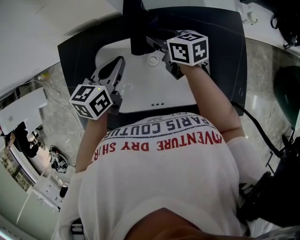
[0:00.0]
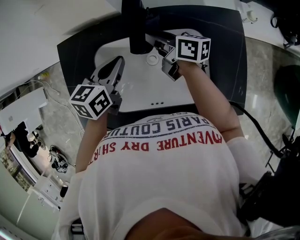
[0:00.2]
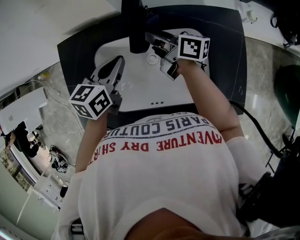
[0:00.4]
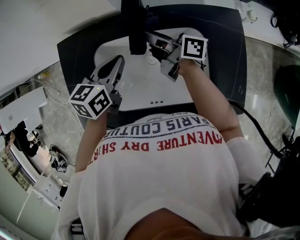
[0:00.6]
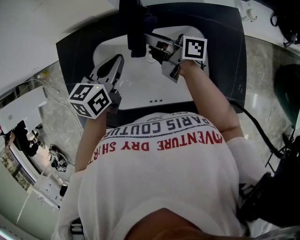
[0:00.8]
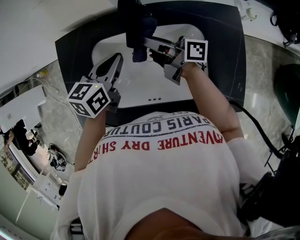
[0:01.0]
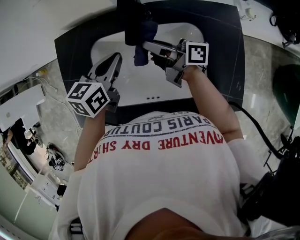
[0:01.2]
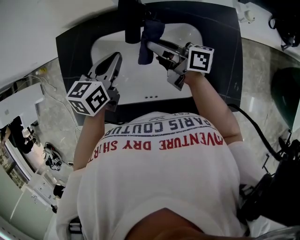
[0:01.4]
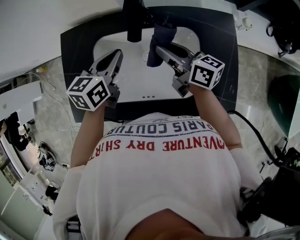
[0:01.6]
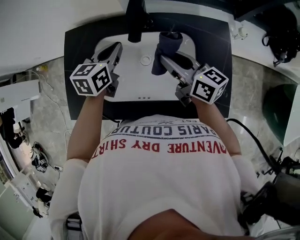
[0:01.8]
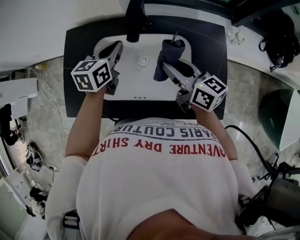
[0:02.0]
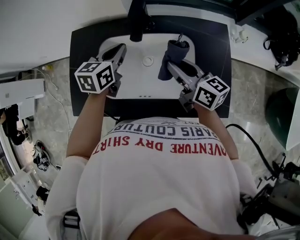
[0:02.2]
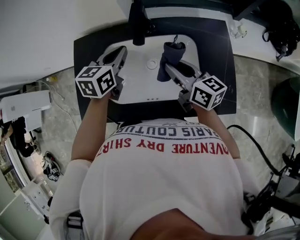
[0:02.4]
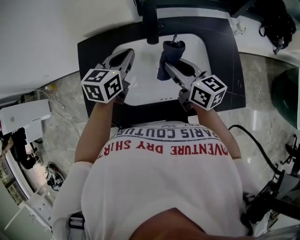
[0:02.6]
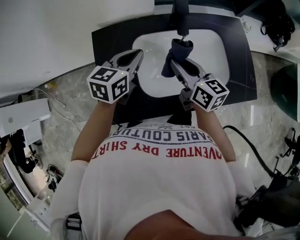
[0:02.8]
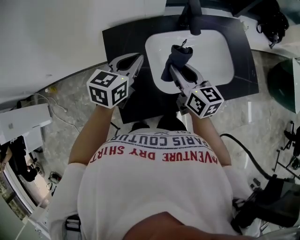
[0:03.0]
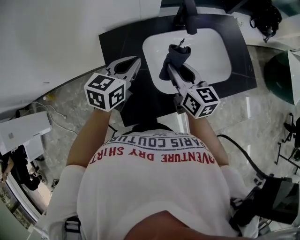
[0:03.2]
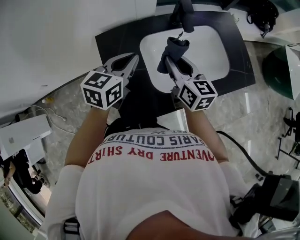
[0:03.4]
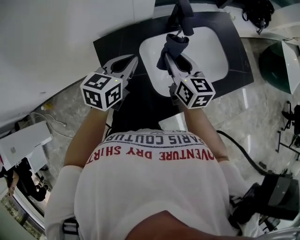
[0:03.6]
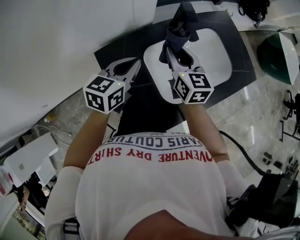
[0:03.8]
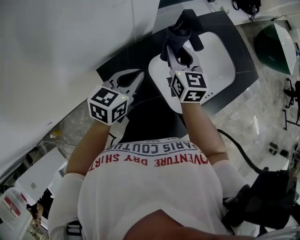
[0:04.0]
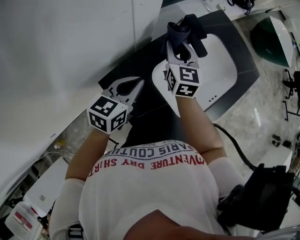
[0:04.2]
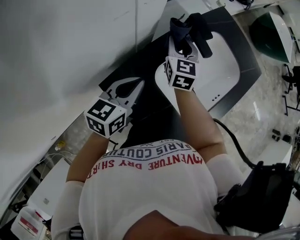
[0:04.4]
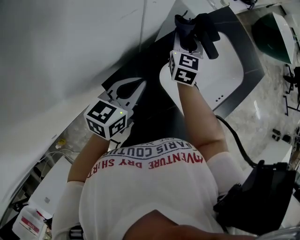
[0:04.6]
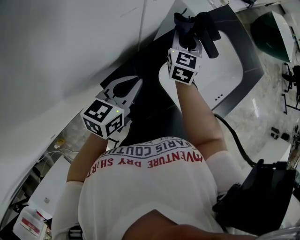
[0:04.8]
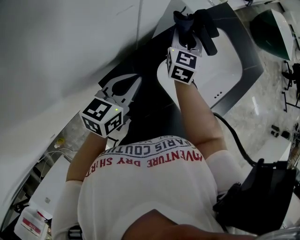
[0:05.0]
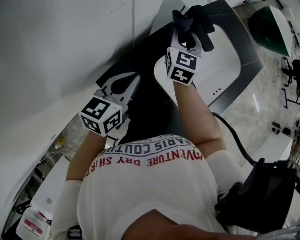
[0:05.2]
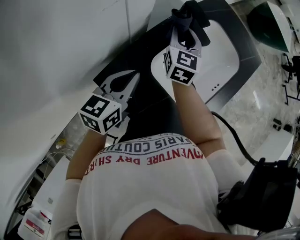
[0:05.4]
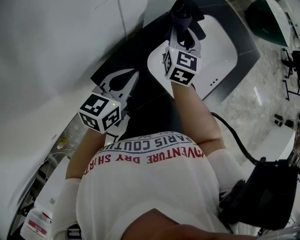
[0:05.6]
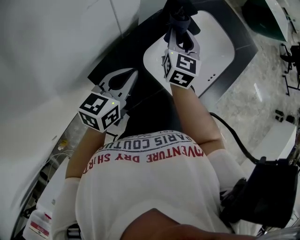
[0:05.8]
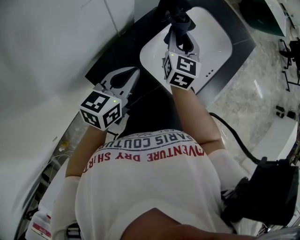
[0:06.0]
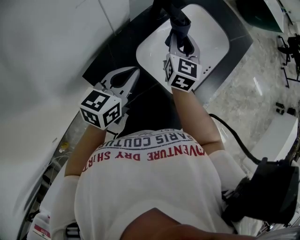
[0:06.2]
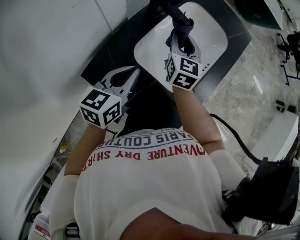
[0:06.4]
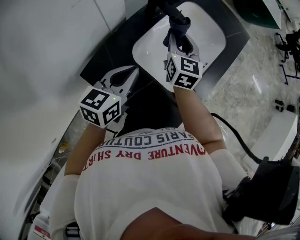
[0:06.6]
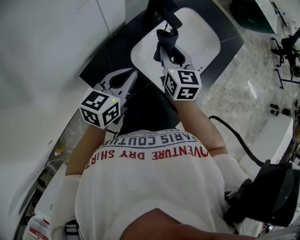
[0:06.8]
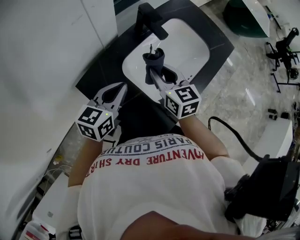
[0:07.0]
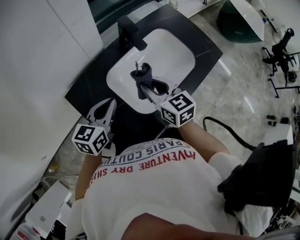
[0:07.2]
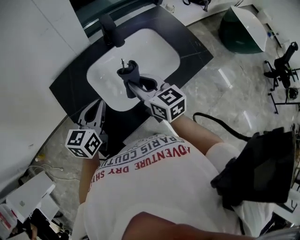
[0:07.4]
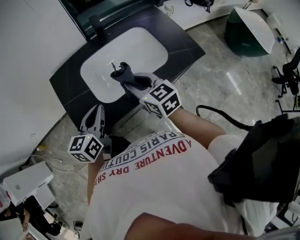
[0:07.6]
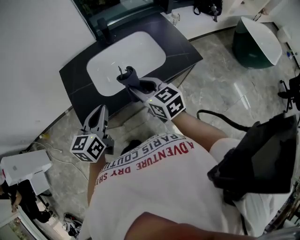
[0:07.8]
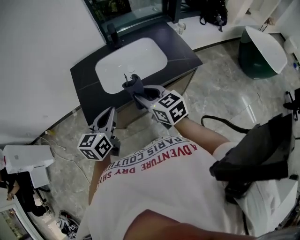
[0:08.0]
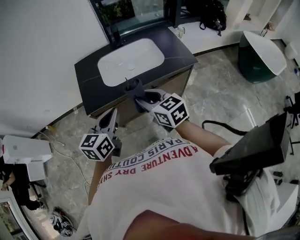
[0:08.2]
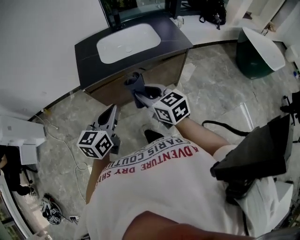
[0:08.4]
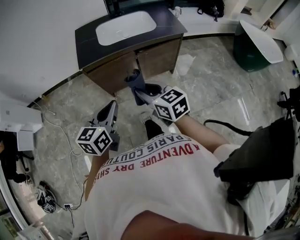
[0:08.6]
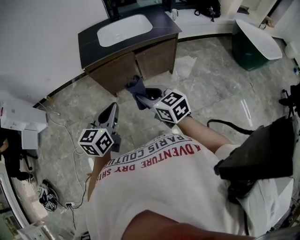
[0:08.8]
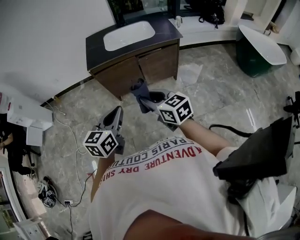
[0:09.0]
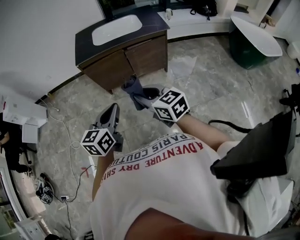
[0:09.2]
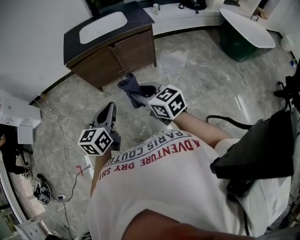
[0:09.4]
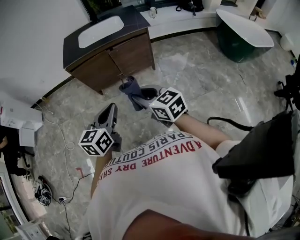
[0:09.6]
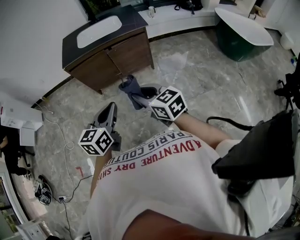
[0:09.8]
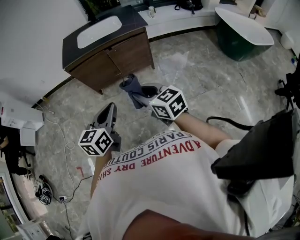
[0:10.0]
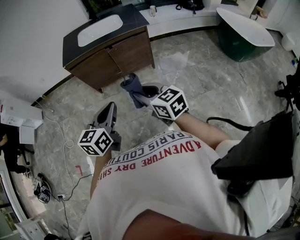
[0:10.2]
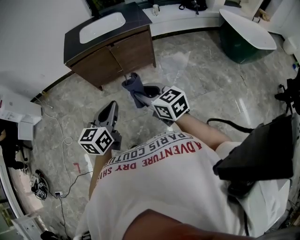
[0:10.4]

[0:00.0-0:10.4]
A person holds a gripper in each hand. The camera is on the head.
0:00.0 to 0:01.4: The right gripper heads backward, covering about 5 cm, and rotates some 30 degrees.
0:01.4 to 0:03.0: The left gripper moves some 20 cm, and swivels roughly 20 degrees; the right gripper shifts by some 25 cm, and swivels roughly 50 degrees.
0:03.0 to 0:04.4: The right gripper shifts by about 30 cm, and swivels roughly 50 degrees; the left gripper moves some 15 cm, and changes its angle by some 30 degrees.
0:04.4 to 0:06.0: The left gripper is displaced to the right by some 5 cm. The right gripper travels to the right by roughly 10 cm.
0:06.0 to 0:07.4: The left gripper moves about 20 cm, and rotates roughly 30 degrees, while the right gripper moves about 20 cm, and rotates approximately 50 degrees.
0:07.4 to 0:09.0: The pair of grippers is taken approximately 70 cm. The right gripper rotates approximately 30 degrees. Meanwhile the left gripper swivels roughly 20 degrees.
0:09.0 to 0:10.4: Both grippers move to the right and backward, roughly 20 cm.

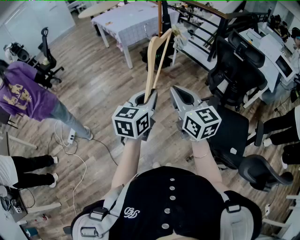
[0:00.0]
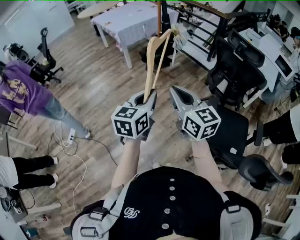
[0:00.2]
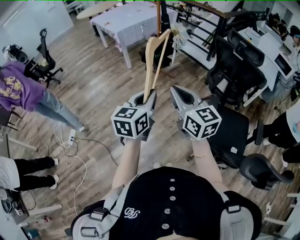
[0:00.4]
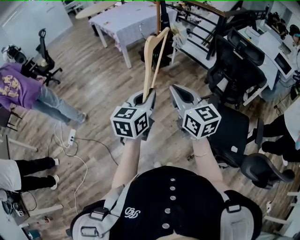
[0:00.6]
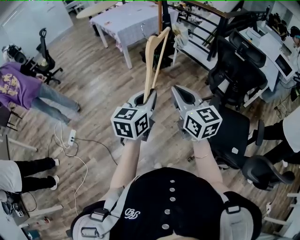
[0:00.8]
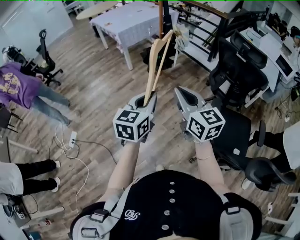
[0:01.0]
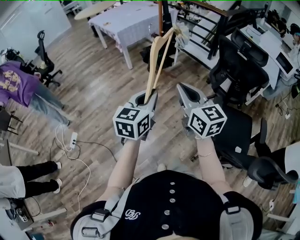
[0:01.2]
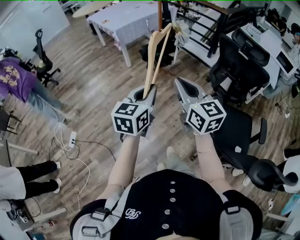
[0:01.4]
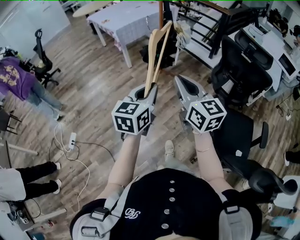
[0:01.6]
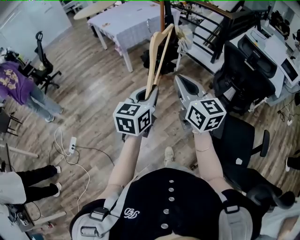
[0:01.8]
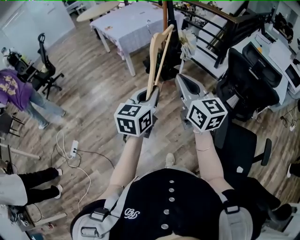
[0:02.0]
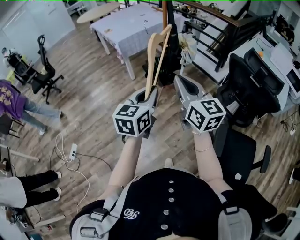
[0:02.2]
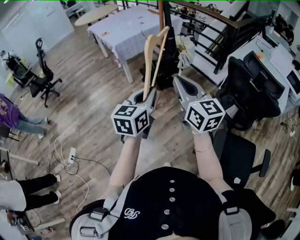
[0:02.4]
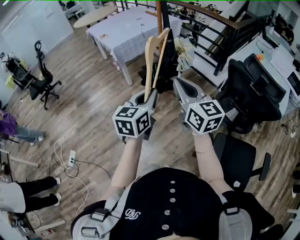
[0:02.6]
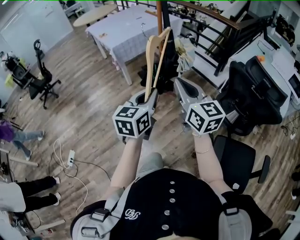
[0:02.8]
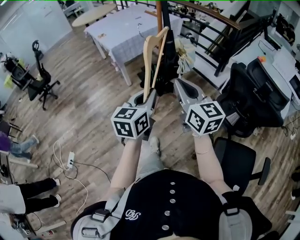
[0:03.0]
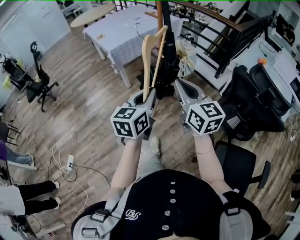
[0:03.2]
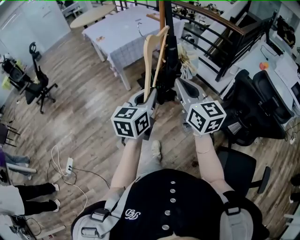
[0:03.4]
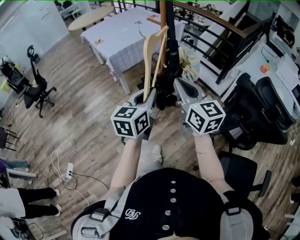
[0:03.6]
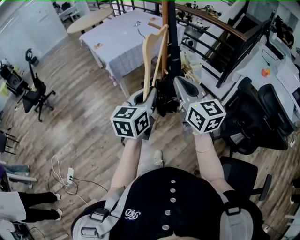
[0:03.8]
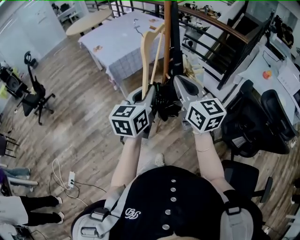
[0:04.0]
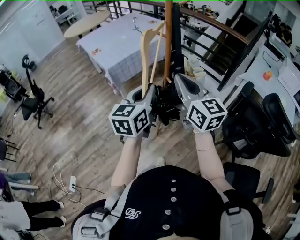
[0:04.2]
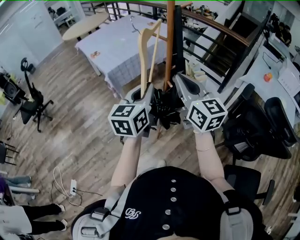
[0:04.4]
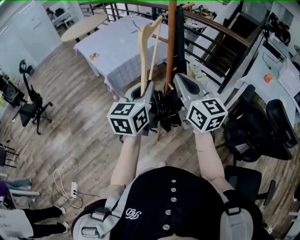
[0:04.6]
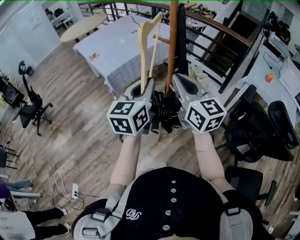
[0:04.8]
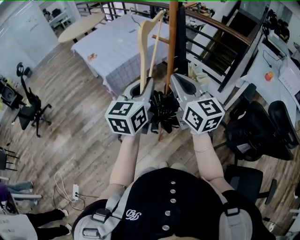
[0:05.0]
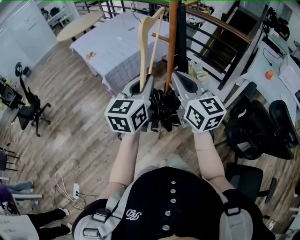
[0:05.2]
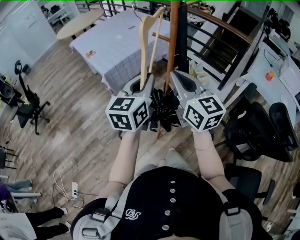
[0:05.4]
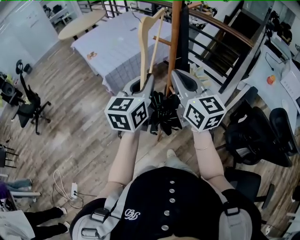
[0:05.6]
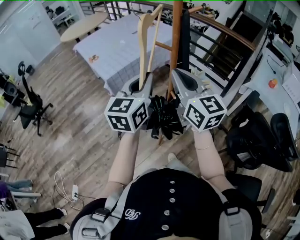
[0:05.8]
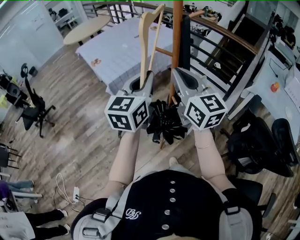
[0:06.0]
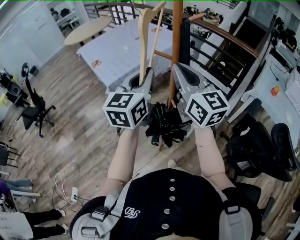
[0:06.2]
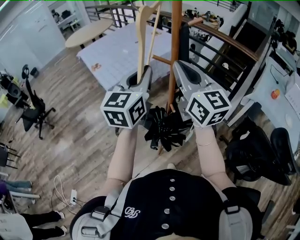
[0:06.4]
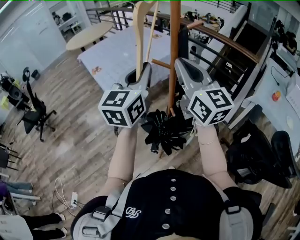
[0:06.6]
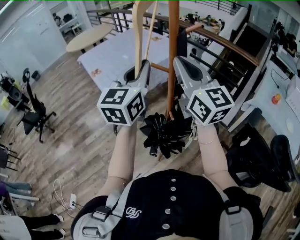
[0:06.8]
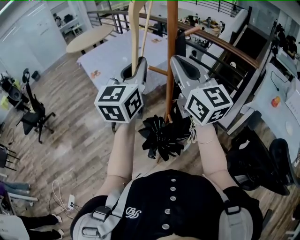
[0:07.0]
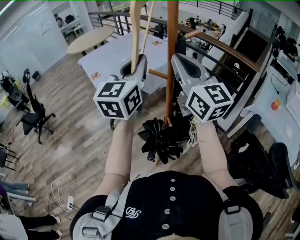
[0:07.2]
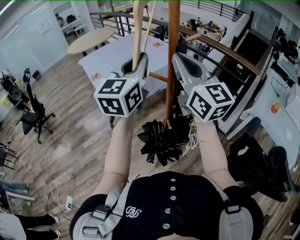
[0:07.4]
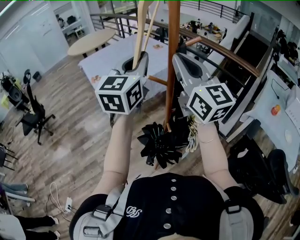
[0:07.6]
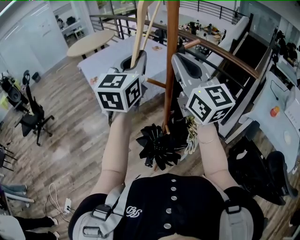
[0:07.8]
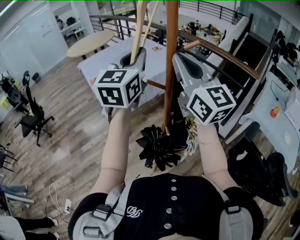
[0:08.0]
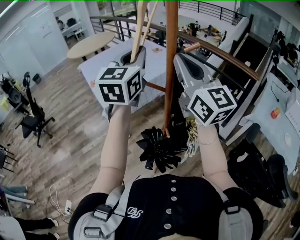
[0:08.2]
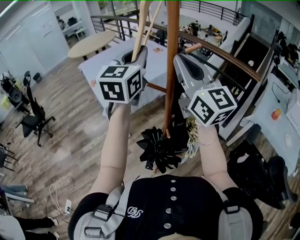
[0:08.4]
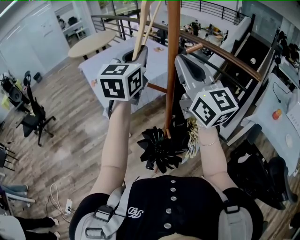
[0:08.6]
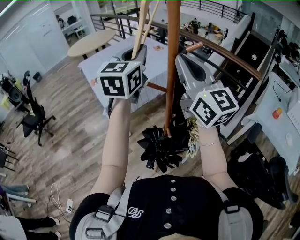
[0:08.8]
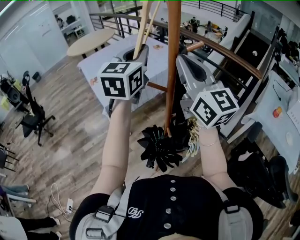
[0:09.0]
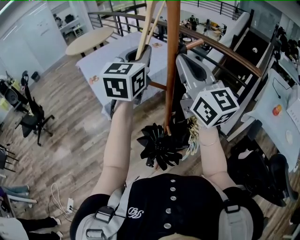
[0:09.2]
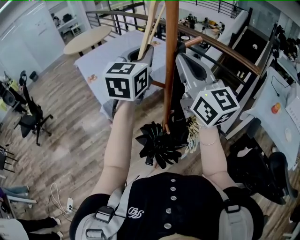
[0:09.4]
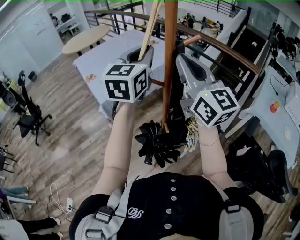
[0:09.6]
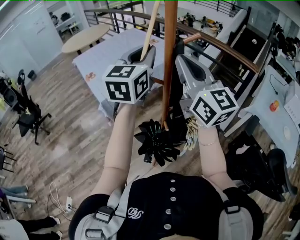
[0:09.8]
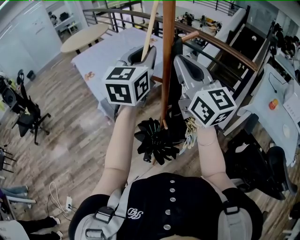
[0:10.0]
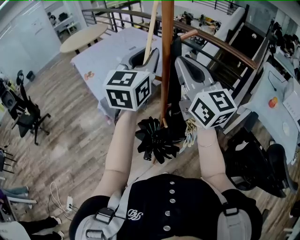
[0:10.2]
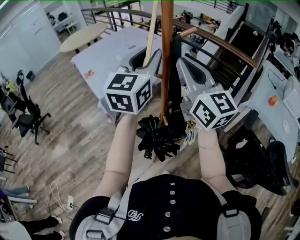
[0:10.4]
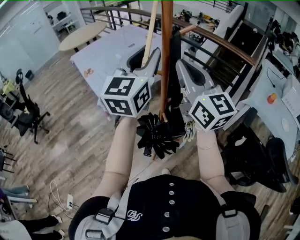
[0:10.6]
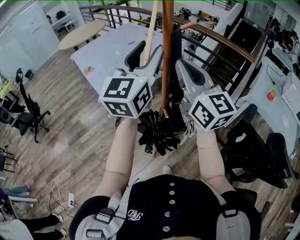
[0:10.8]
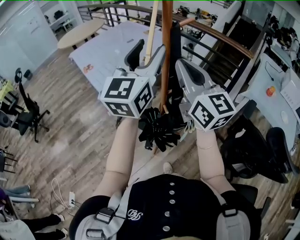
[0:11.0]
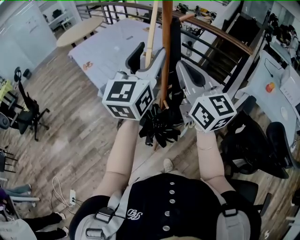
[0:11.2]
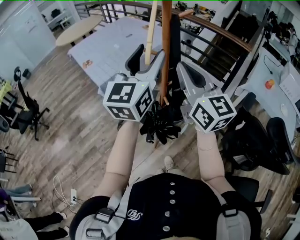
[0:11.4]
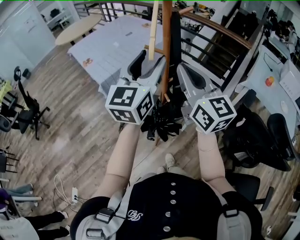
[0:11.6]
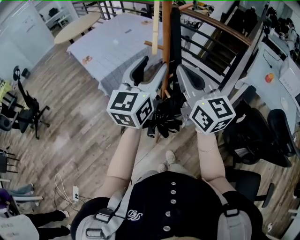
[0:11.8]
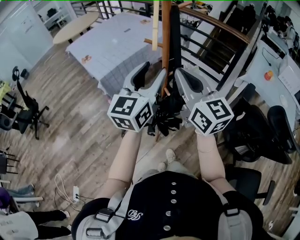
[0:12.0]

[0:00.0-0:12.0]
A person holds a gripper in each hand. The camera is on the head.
0:00.0 to 0:01.6: Both grippers travel together forward, roughly 10 cm.
0:01.6 to 0:03.0: The two grippers go roughly 25 cm forward.
0:03.0 to 0:04.4: The grippers both shift forward by some 25 cm.
0:04.4 to 0:06.0: The right gripper travels forward by about 10 cm. Meanwhile the left gripper moves forward and upward, some 15 cm.
0:06.0 to 0:07.6: Both grippers move upward and forward, about 15 cm.
0:07.6 to 0:09.0: The left gripper goes some 5 cm forward.
0:09.0 to 0:10.4: The left gripper is displaced backward by about 5 cm, and opens its fingers, while the right gripper shifts by approximately 5 cm.
0:10.4 to 0:12.0: Both grippers move backward and downward, approximately 15 cm. The left gripper opens.

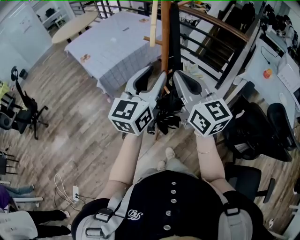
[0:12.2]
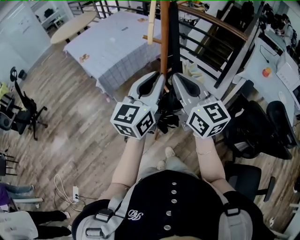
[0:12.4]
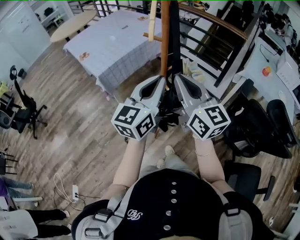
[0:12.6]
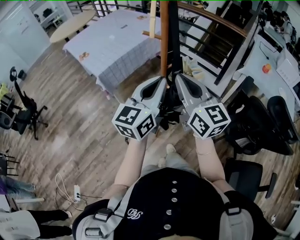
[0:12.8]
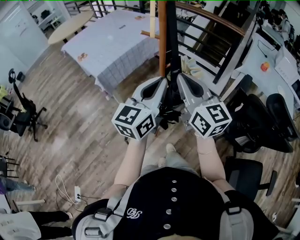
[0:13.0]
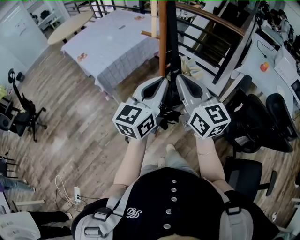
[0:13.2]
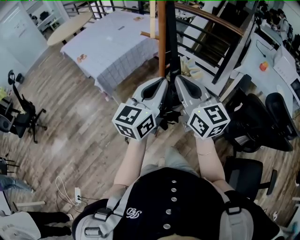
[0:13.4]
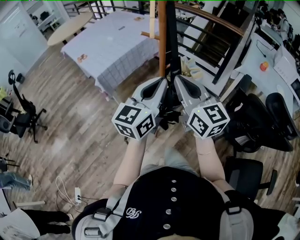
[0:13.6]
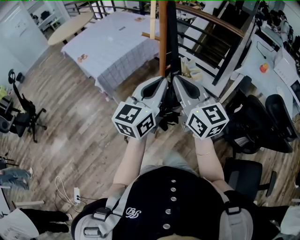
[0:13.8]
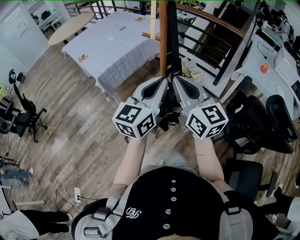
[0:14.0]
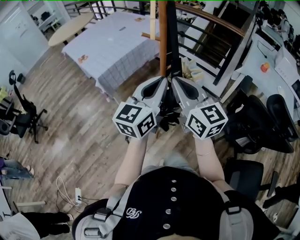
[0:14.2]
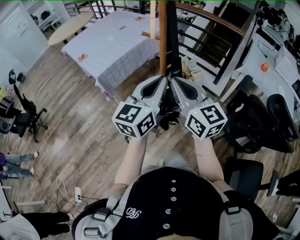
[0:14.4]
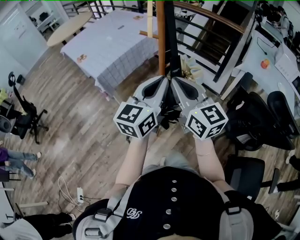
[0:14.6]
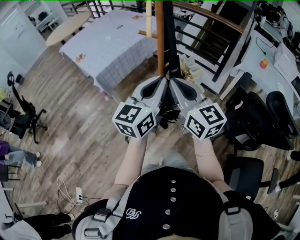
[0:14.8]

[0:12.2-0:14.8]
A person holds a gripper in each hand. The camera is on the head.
0:12.2 to 0:13.4: The left gripper changes place by about 5 cm, and closes up.
0:13.4 to 0:14.8: The grippers stay close to where they were, moving slightly.
